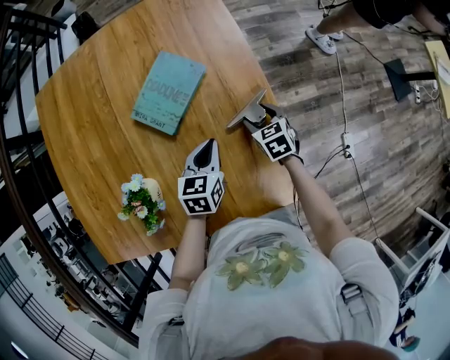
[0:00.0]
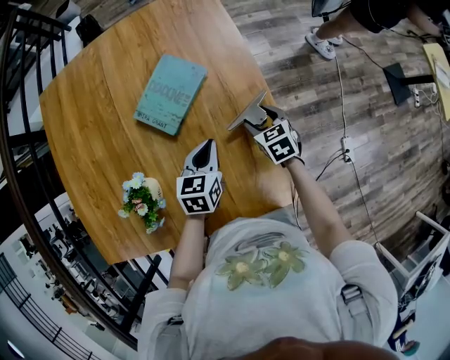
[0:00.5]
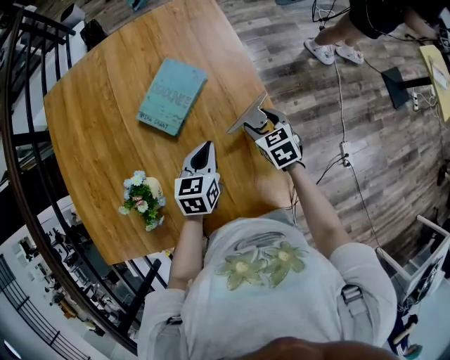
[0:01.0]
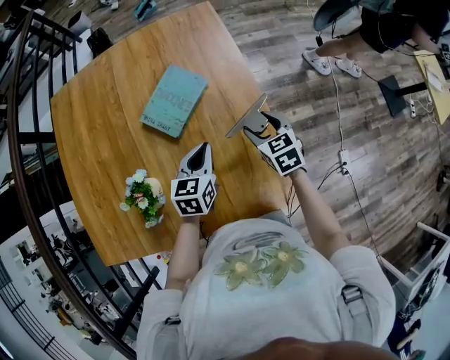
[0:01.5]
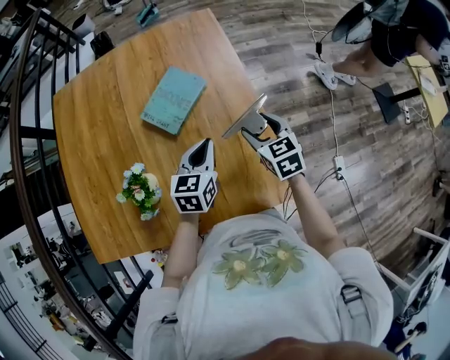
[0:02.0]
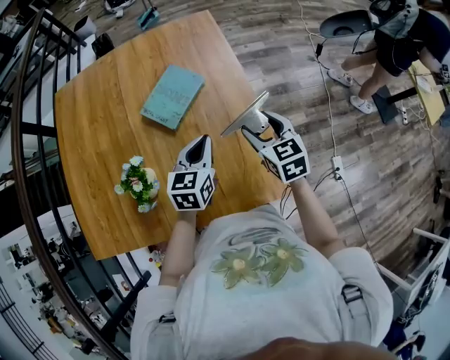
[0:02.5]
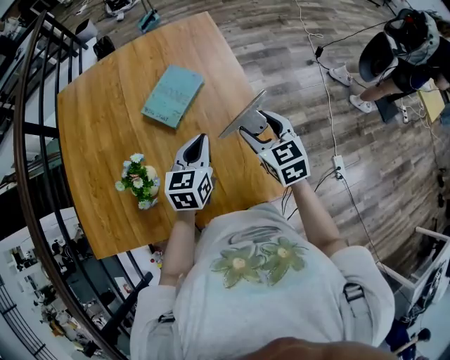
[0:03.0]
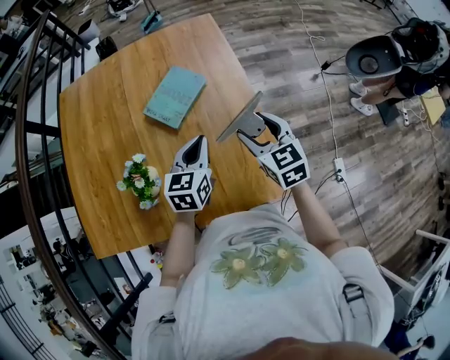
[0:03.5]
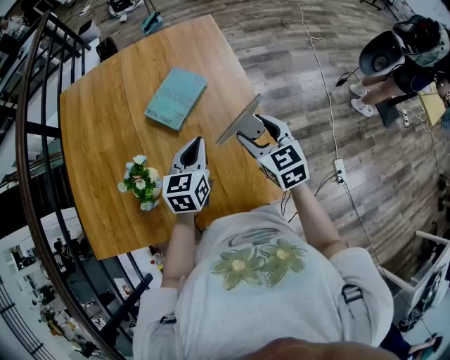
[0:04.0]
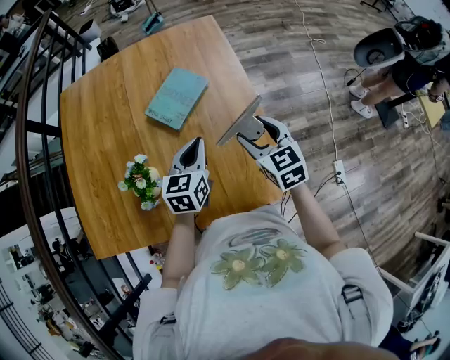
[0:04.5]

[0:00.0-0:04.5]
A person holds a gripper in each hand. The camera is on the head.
0:00.0 to 0:02.0: The right gripper shifts about 15 cm upward. Meanwhile the left gripper heads upward, covering some 10 cm.
0:02.0 to 0:04.5: The left gripper shifts by about 5 cm. The right gripper is displaced upward by about 5 cm.

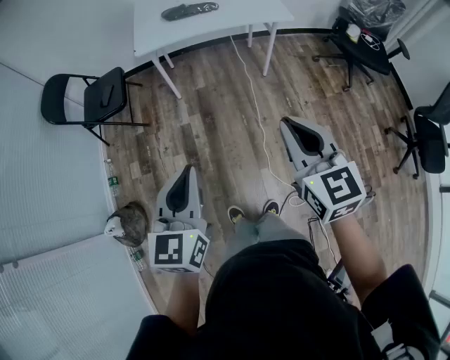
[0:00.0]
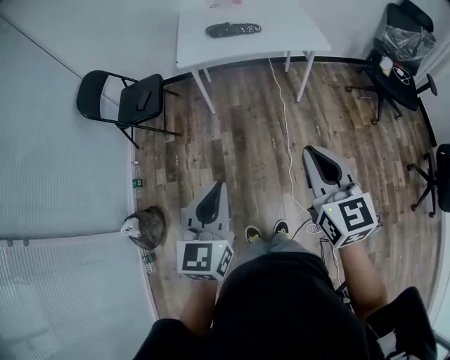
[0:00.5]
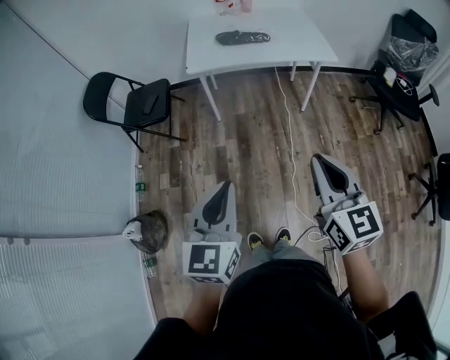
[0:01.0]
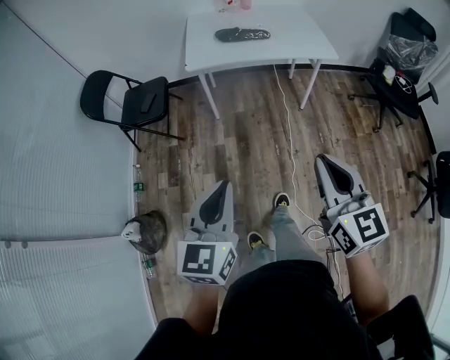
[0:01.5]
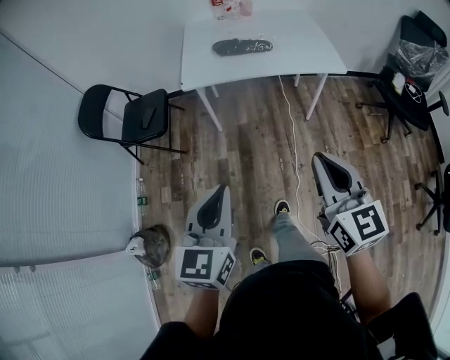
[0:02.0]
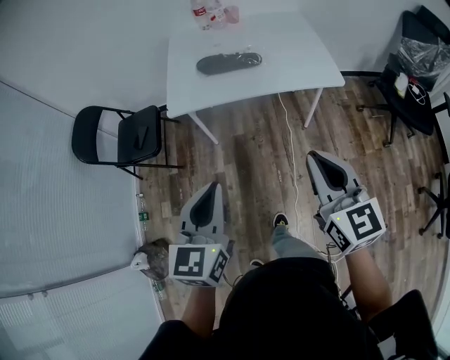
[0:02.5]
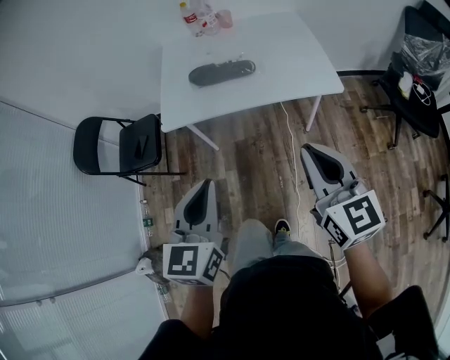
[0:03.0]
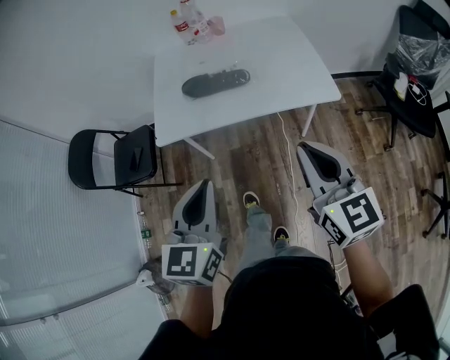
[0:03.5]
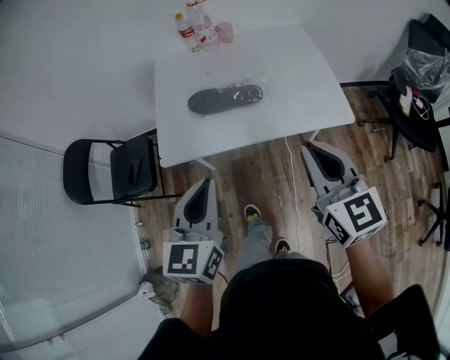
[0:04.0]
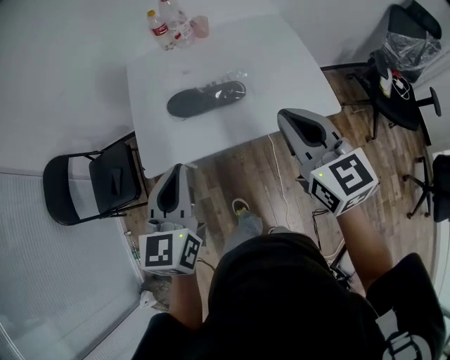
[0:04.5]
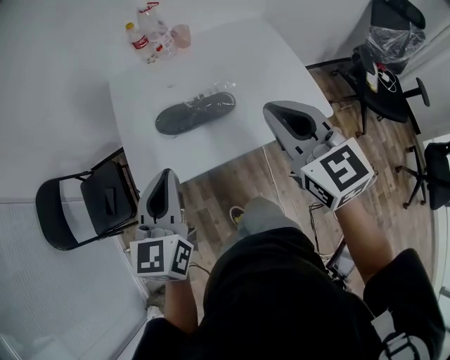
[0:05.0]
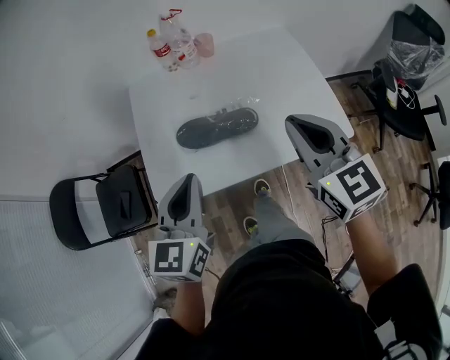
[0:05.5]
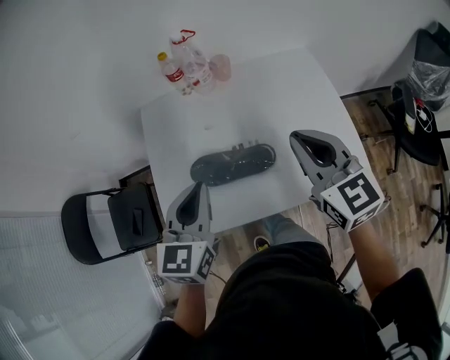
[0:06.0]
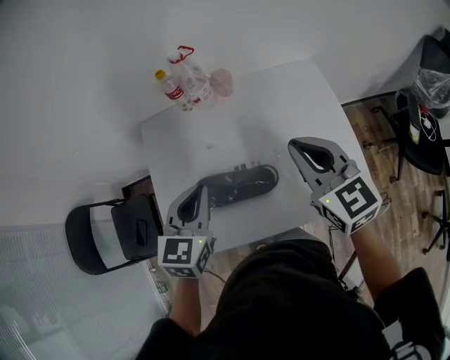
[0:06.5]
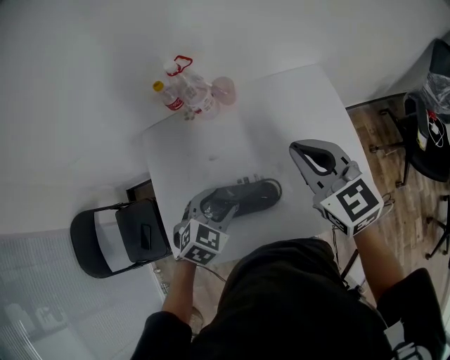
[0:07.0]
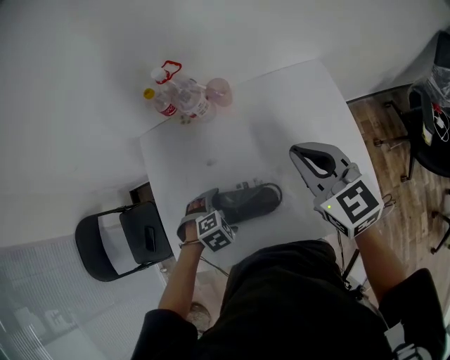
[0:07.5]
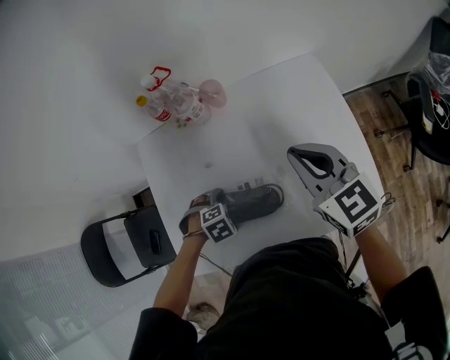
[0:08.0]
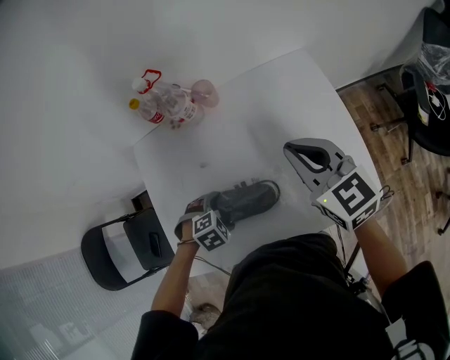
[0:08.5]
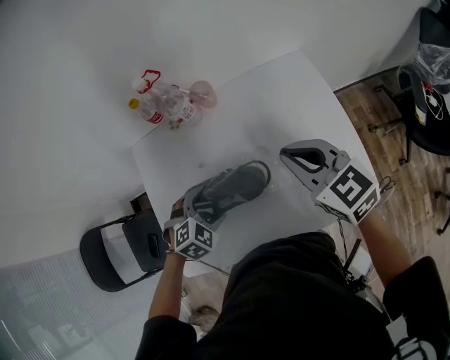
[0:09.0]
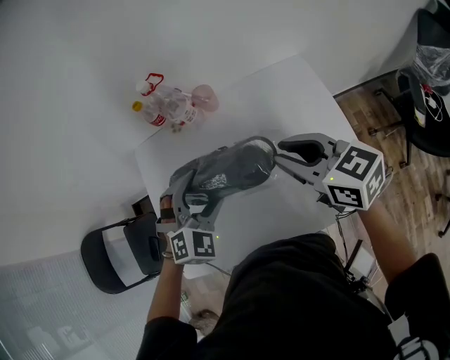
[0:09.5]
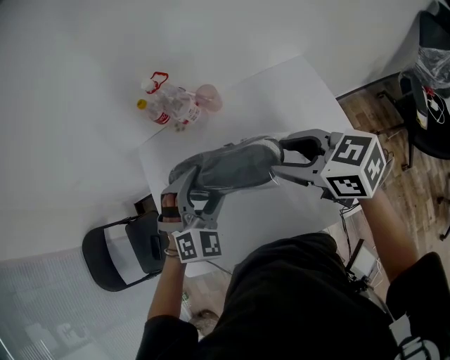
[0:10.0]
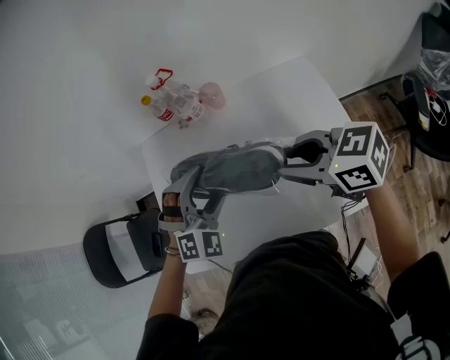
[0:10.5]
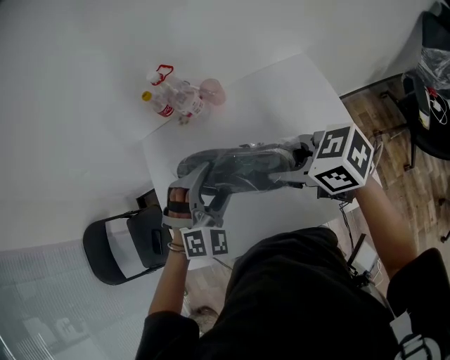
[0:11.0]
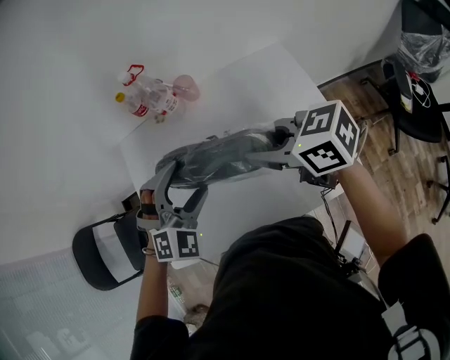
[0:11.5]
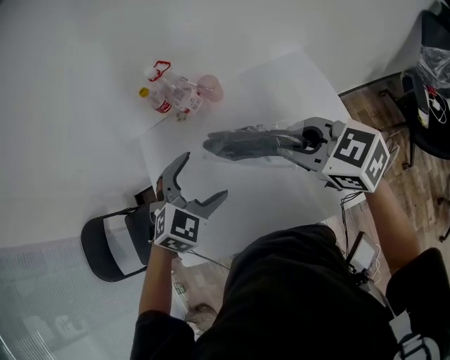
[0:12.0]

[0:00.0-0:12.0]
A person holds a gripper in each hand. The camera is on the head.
0:00.0 to 0:02.0: The two grippers go some 15 cm forward.
0:02.0 to 0:04.0: Both grippers move forward, roughly 35 cm.
0:04.0 to 0:06.0: Both grippers travel together forward, some 30 cm.
0:06.0 to 0:08.0: The right gripper ends up roughly 15 cm from where it was. Meanwhile the left gripper heads downward, covering about 30 cm, points its fingers roughly 60 degrees further downward, and opens.
0:08.0 to 0:10.0: The left gripper shifts some 20 cm upward, and angles its fingers upward, by approximately 50 degrees; the right gripper rotates approximately 30 degrees, and opens its fingers.
0:10.0 to 0:12.0: The left gripper turns by about 20 degrees, while the right gripper closes.

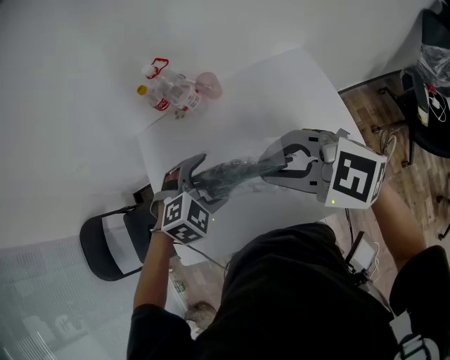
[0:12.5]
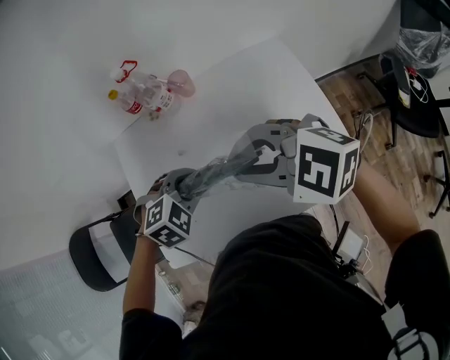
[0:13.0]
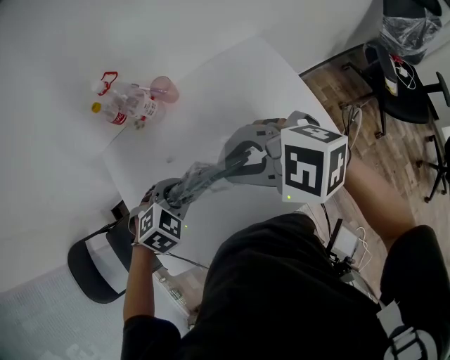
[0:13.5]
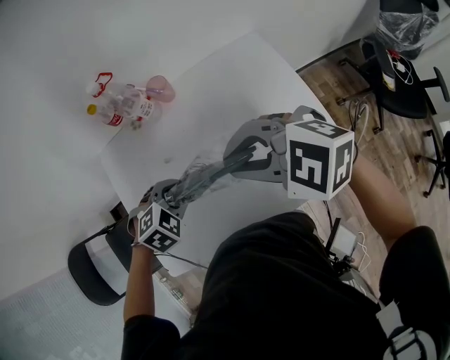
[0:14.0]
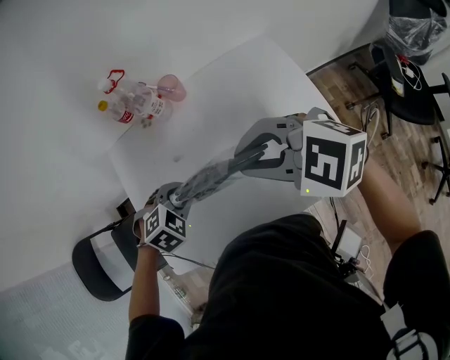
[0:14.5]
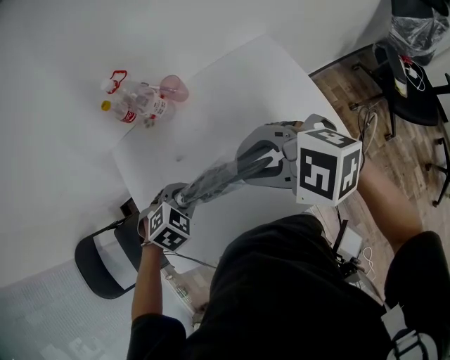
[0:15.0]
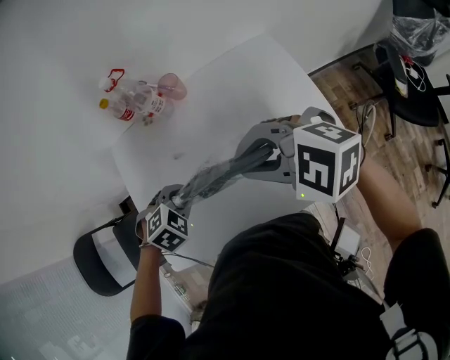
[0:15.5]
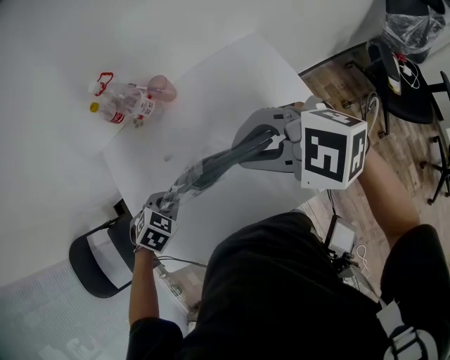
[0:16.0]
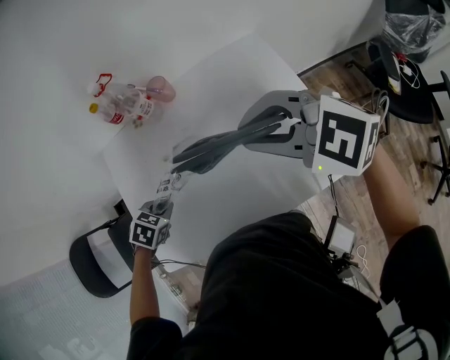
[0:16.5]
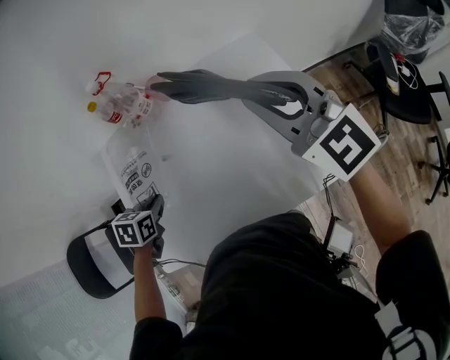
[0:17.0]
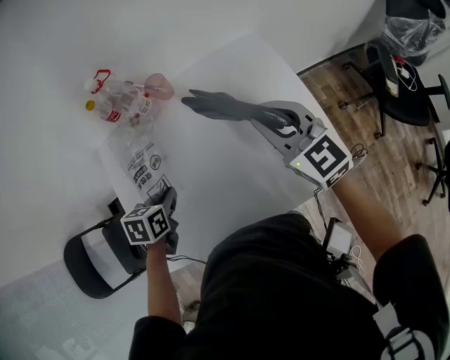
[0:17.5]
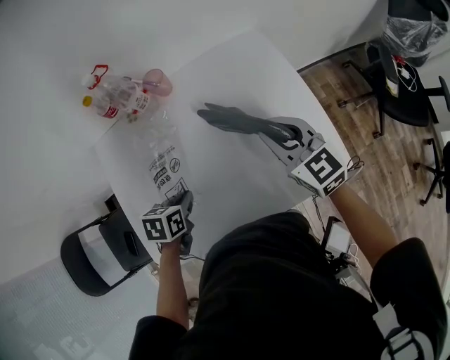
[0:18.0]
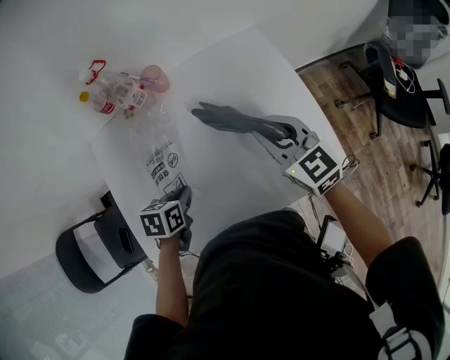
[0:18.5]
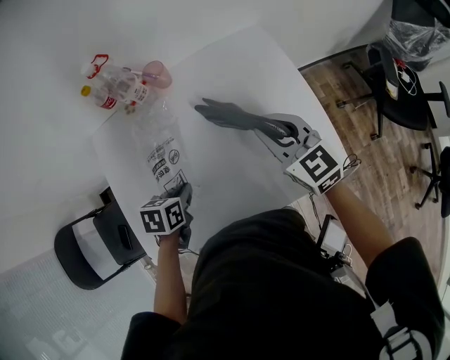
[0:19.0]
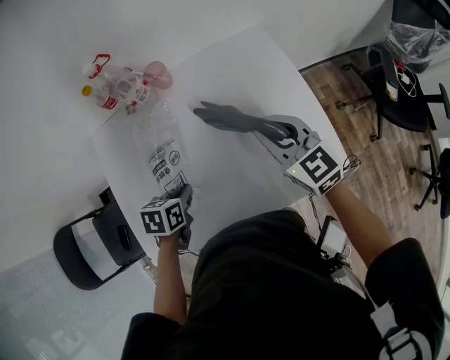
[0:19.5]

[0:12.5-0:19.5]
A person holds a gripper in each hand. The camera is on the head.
0:12.5 to 0:14.5: The left gripper goes roughly 5 cm downward, and closes up.
0:14.5 to 0:16.0: The grippers make only small movements.
0:16.0 to 0:17.5: The left gripper rotates around the line of its fingers by about 50 degrees, counterclockwise from behind. Meanwhile the right gripper moves some 10 cm, and swivels about 50 degrees.
0:17.5 to 0:19.5: The left gripper changes place by some 5 cm. The right gripper moves downward, some 5 cm.

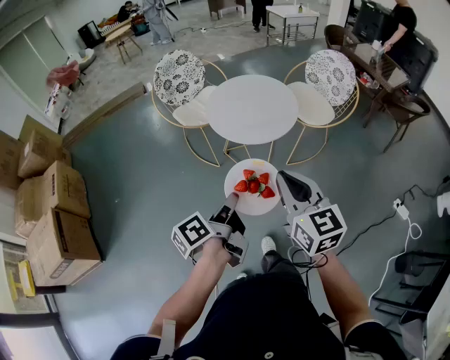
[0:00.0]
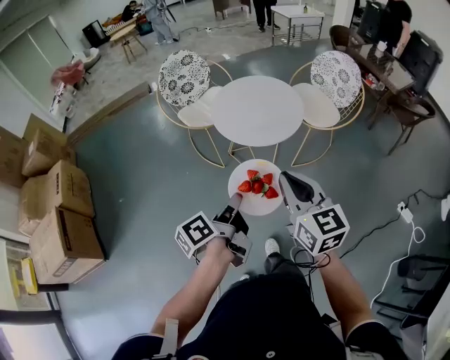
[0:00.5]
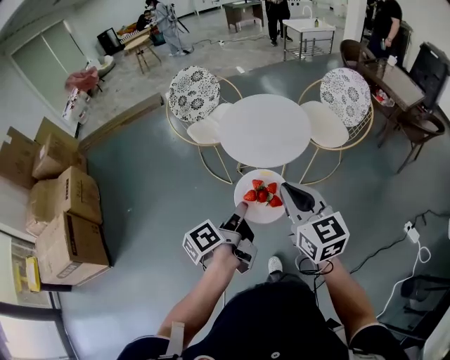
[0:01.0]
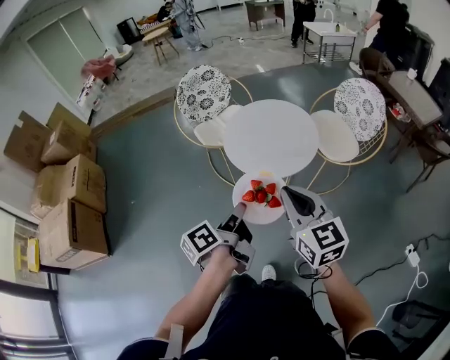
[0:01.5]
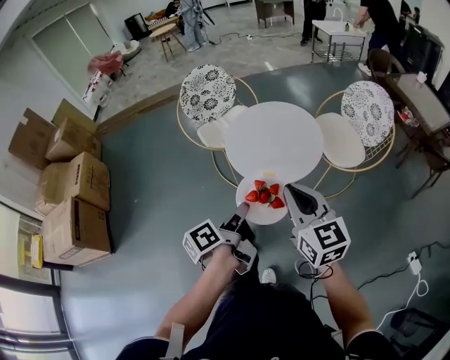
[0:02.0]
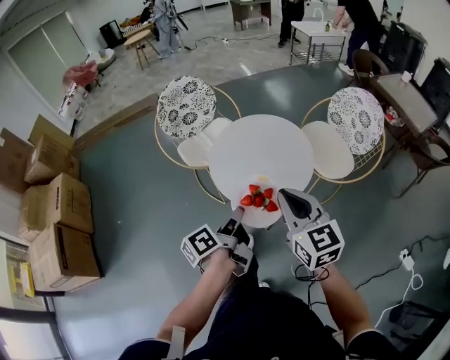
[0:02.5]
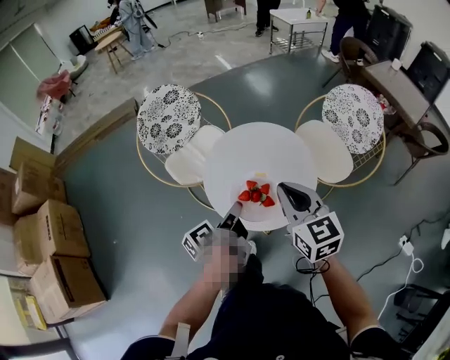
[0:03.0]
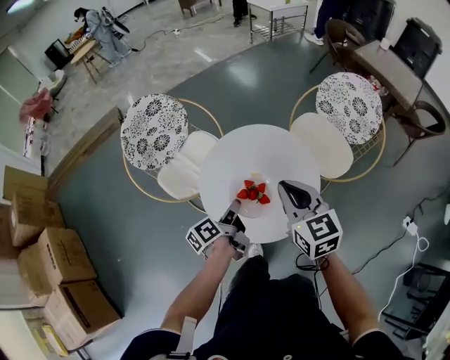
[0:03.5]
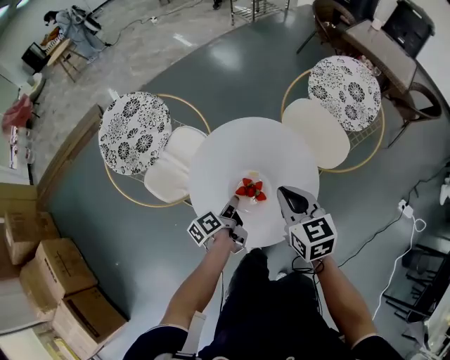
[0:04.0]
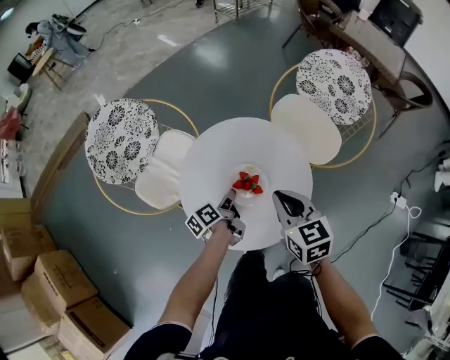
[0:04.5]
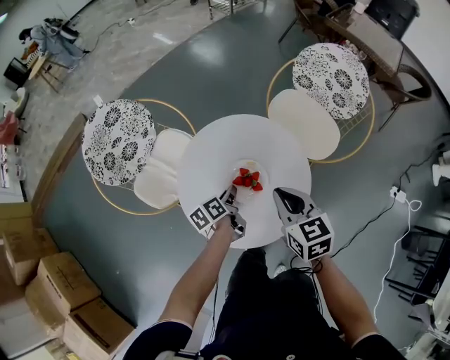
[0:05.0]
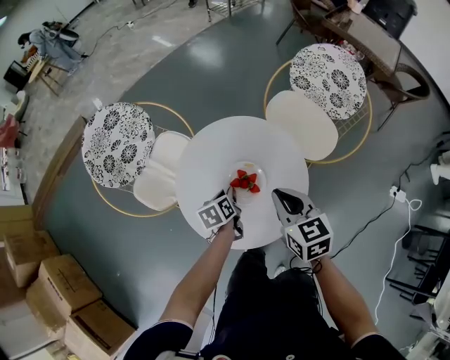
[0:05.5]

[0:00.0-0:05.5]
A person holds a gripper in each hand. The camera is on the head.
0:00.0 to 0:02.0: The right gripper travels forward by some 15 cm. The left gripper moves forward and to the right, some 15 cm.
0:02.0 to 0:03.5: The left gripper travels forward and downward by about 35 cm. Meanwhile the right gripper travels forward by about 30 cm, and rotates about 20 degrees.
0:03.5 to 0:05.5: The right gripper heads downward, covering some 10 cm, while the left gripper shifts some 15 cm downward and forward, and turns by some 40 degrees.
